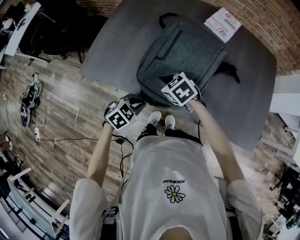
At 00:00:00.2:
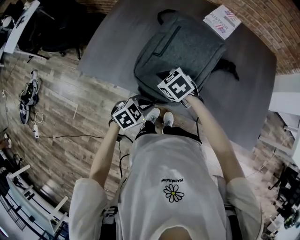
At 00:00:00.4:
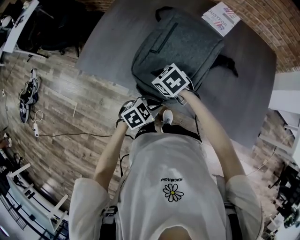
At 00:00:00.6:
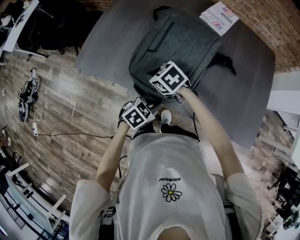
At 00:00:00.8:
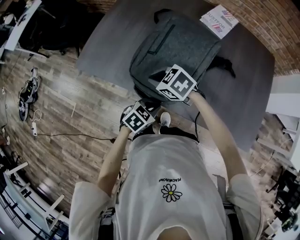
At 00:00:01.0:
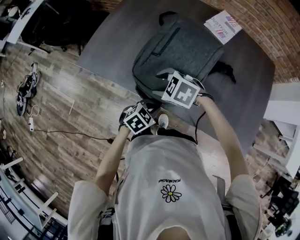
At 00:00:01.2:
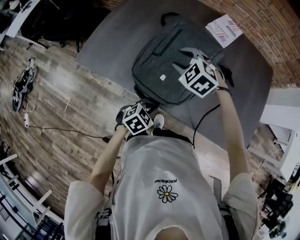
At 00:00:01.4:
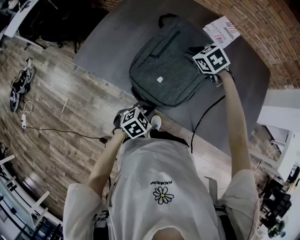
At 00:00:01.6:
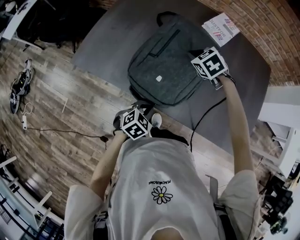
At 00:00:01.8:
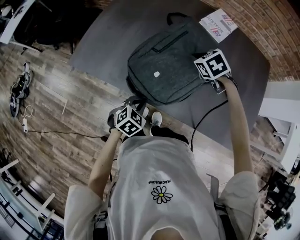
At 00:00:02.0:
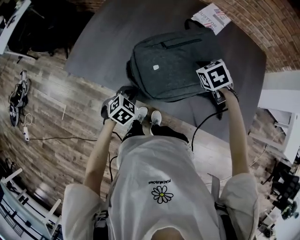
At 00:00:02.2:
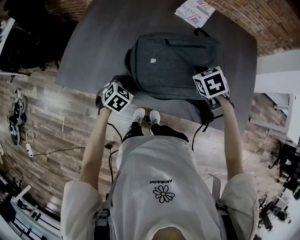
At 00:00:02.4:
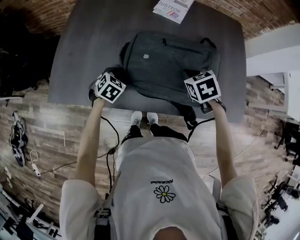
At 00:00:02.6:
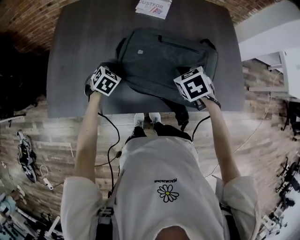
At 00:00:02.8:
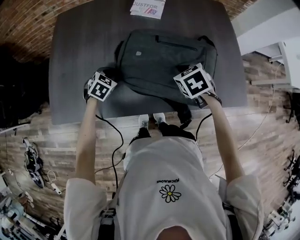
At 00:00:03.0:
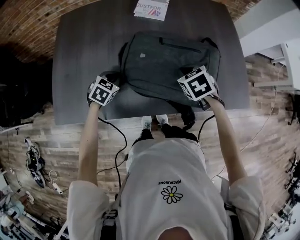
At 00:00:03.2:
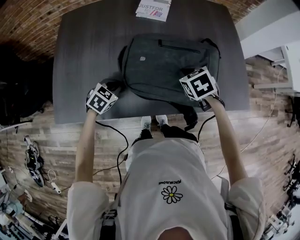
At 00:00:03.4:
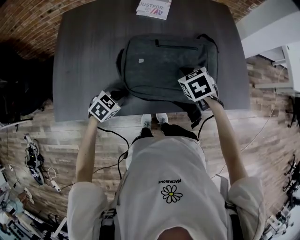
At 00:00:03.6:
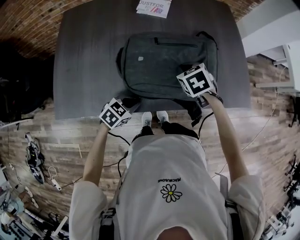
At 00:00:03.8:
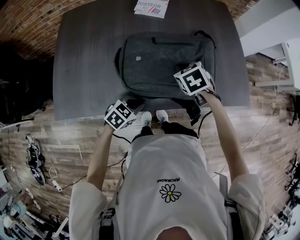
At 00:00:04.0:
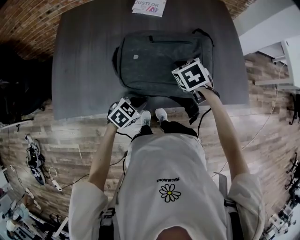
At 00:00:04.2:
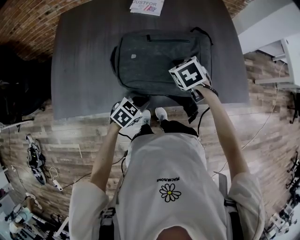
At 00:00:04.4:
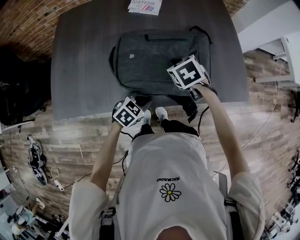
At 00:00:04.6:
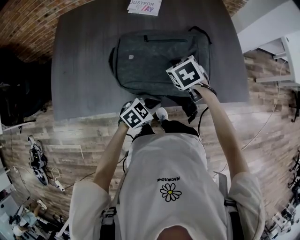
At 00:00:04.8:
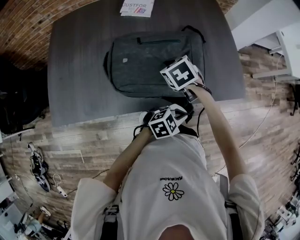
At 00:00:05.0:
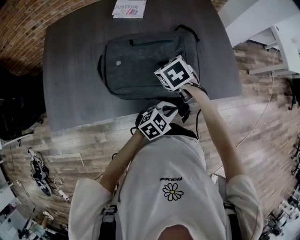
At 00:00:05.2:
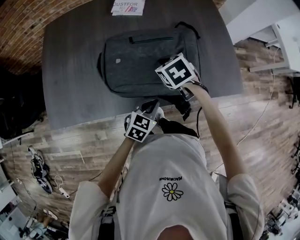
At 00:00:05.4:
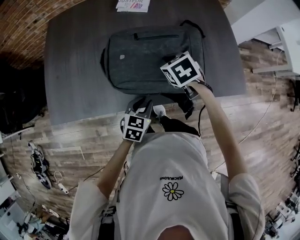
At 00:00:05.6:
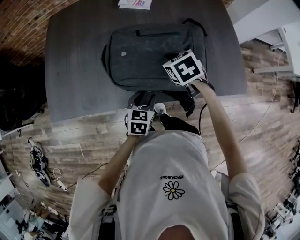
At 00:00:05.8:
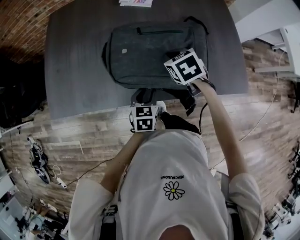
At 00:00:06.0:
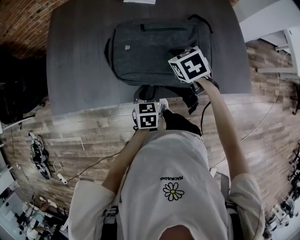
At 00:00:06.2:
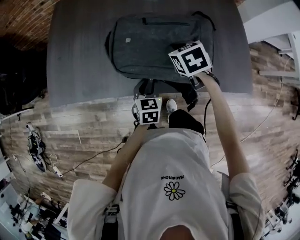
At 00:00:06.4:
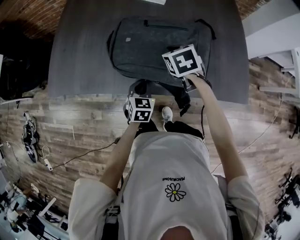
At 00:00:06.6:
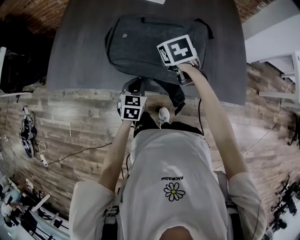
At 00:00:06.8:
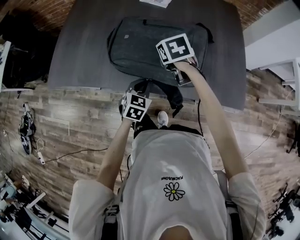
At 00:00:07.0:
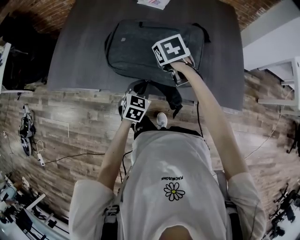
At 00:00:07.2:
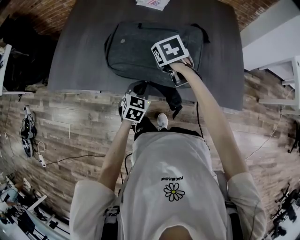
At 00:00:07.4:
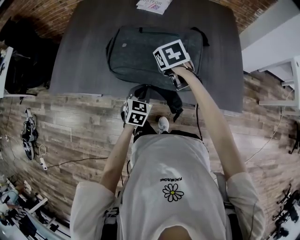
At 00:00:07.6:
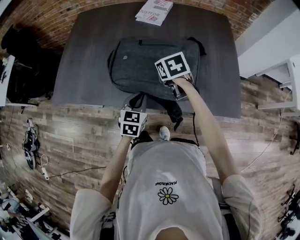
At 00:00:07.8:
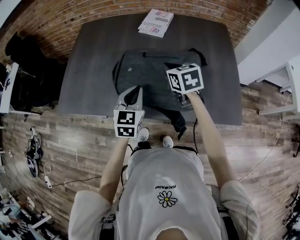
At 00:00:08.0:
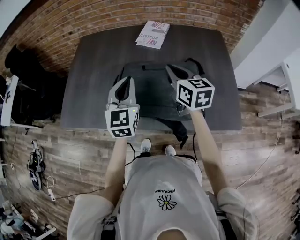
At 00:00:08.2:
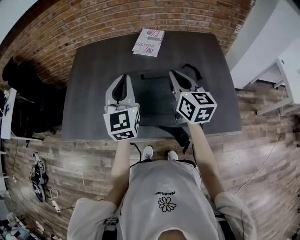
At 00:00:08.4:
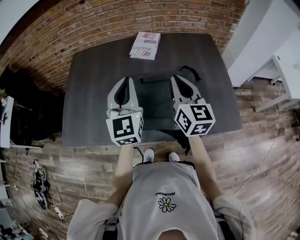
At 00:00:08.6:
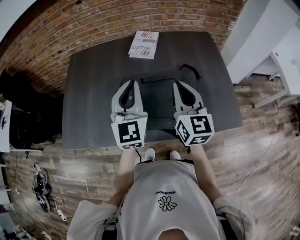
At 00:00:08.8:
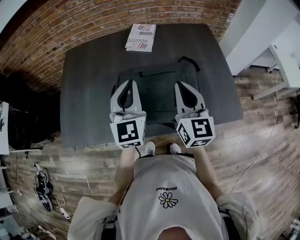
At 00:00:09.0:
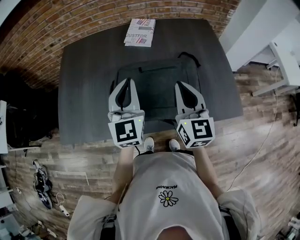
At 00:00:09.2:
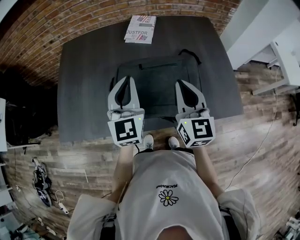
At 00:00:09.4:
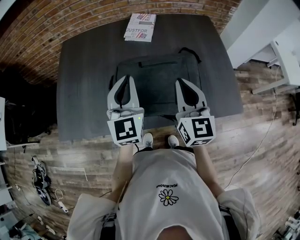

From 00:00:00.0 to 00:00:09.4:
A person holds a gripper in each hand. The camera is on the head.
From 00:00:00.0 to 00:00:01.6: The right gripper ends up some 20 cm from where it was, and opens, then closes once more, while the left gripper shifts by about 10 cm.
From 00:00:01.6 to 00:00:03.2: The left gripper shifts by about 15 cm, and turns by some 20 degrees; the right gripper changes place by some 20 cm, and swivels roughly 40 degrees.
From 00:00:03.2 to 00:00:04.8: The left gripper shifts approximately 35 cm to the right, and swivels about 40 degrees.
From 00:00:04.8 to 00:00:06.2: The left gripper ends up about 20 cm from where it was, turns by approximately 70 degrees, and opens up.
From 00:00:06.2 to 00:00:07.8: The right gripper shifts roughly 5 cm upward, and changes its angle by approximately 20 degrees, while the left gripper is displaced upward by approximately 15 cm, swivels some 20 degrees, and closes its fingers.
From 00:00:07.8 to 00:00:09.4: The left gripper goes approximately 15 cm upward and forward, and rotates approximately 20 degrees; the right gripper heads upward and backward, covering approximately 15 cm, and tilts its fingers some 30 degrees upward.

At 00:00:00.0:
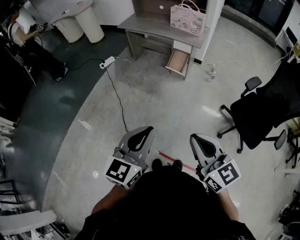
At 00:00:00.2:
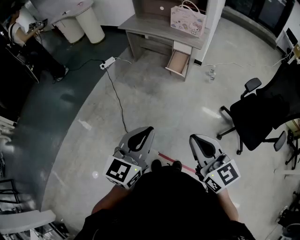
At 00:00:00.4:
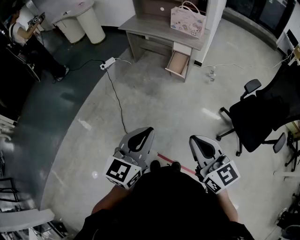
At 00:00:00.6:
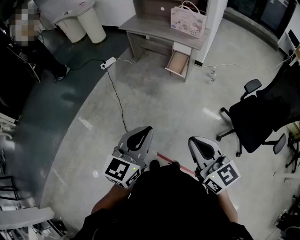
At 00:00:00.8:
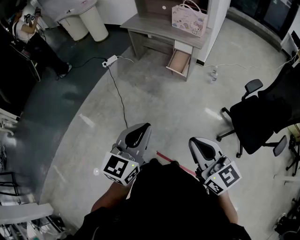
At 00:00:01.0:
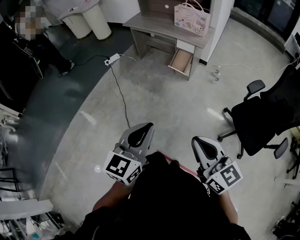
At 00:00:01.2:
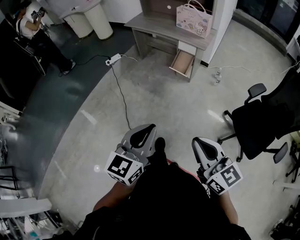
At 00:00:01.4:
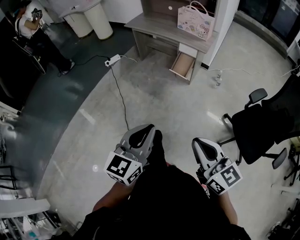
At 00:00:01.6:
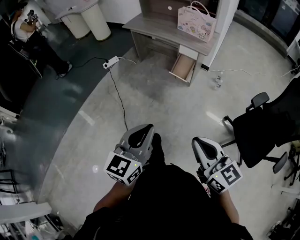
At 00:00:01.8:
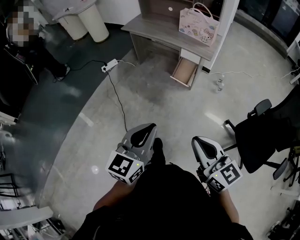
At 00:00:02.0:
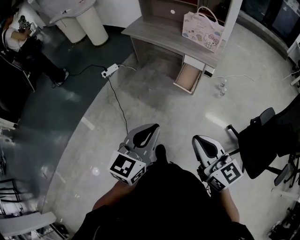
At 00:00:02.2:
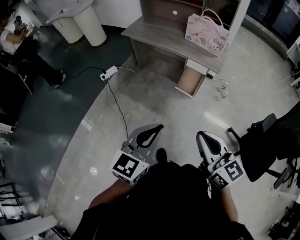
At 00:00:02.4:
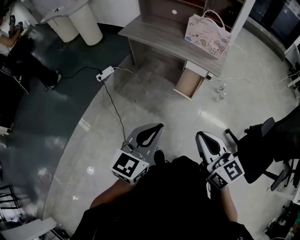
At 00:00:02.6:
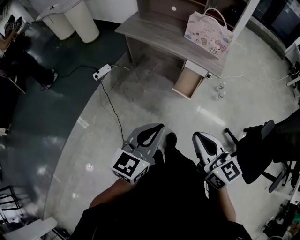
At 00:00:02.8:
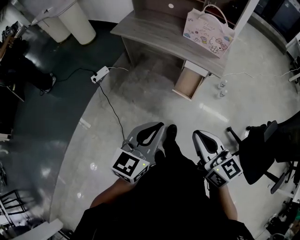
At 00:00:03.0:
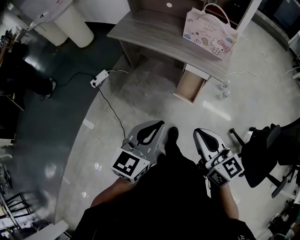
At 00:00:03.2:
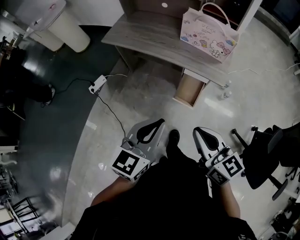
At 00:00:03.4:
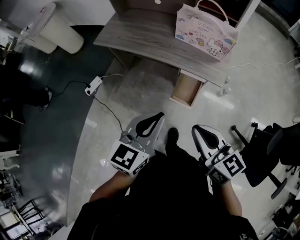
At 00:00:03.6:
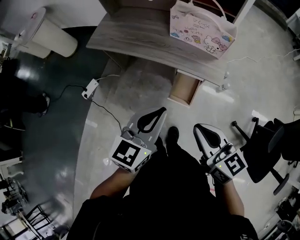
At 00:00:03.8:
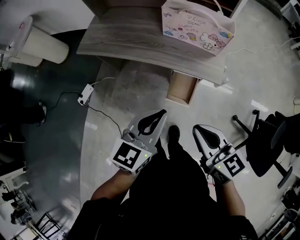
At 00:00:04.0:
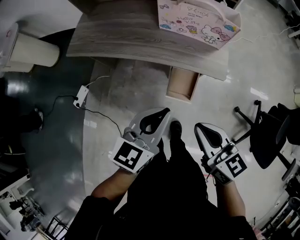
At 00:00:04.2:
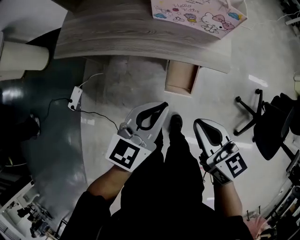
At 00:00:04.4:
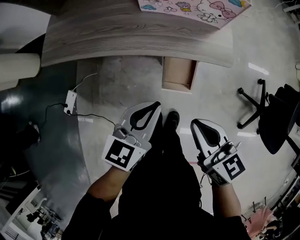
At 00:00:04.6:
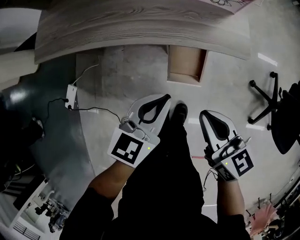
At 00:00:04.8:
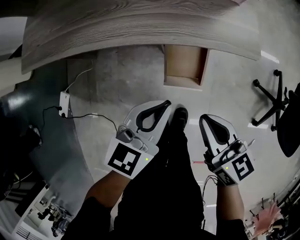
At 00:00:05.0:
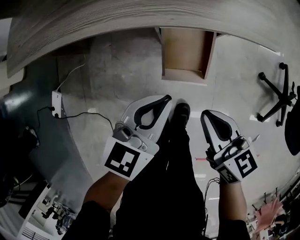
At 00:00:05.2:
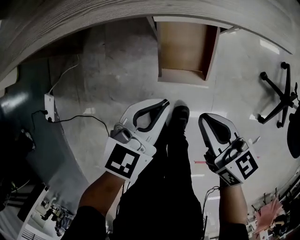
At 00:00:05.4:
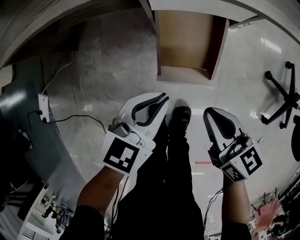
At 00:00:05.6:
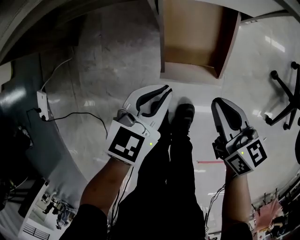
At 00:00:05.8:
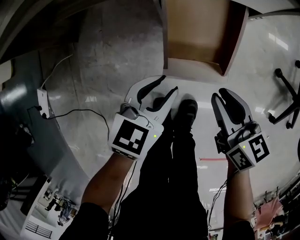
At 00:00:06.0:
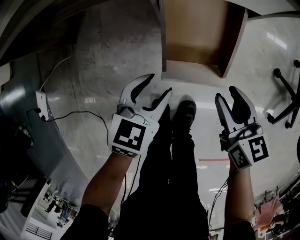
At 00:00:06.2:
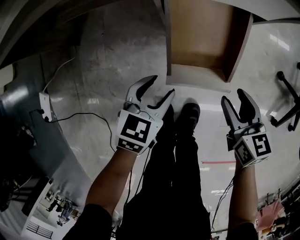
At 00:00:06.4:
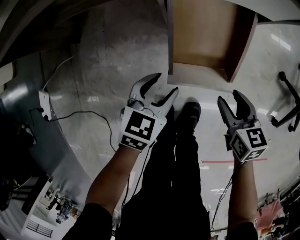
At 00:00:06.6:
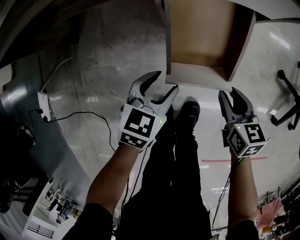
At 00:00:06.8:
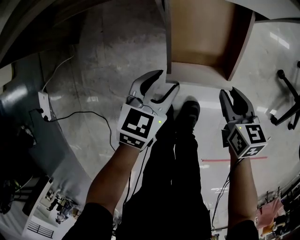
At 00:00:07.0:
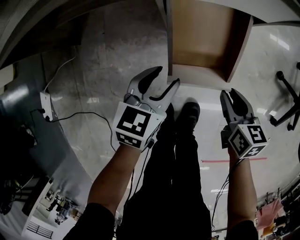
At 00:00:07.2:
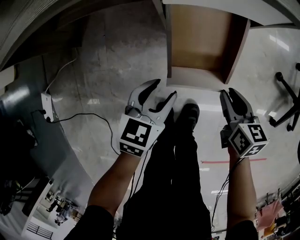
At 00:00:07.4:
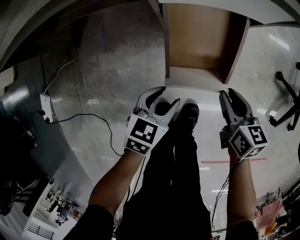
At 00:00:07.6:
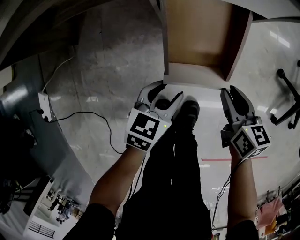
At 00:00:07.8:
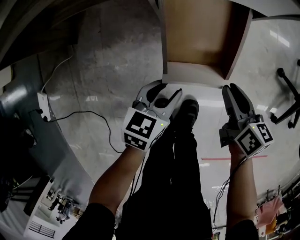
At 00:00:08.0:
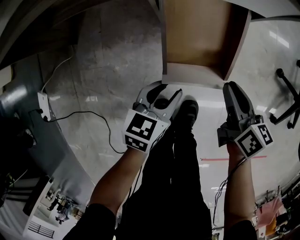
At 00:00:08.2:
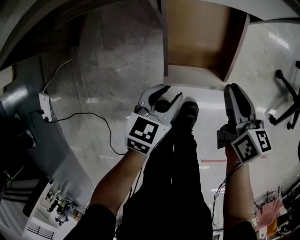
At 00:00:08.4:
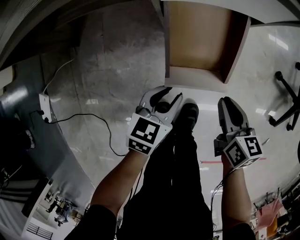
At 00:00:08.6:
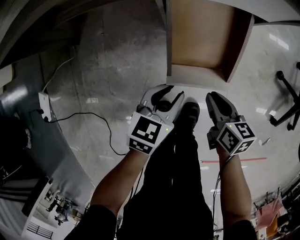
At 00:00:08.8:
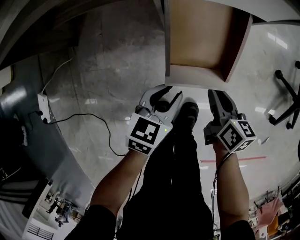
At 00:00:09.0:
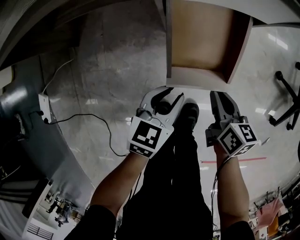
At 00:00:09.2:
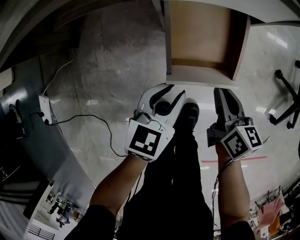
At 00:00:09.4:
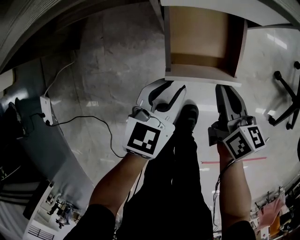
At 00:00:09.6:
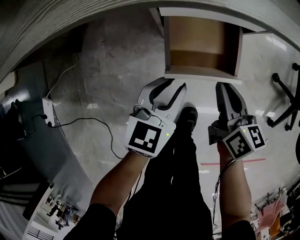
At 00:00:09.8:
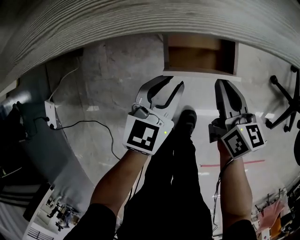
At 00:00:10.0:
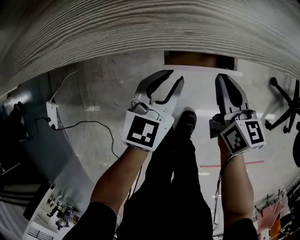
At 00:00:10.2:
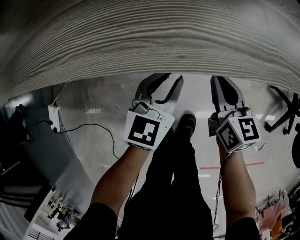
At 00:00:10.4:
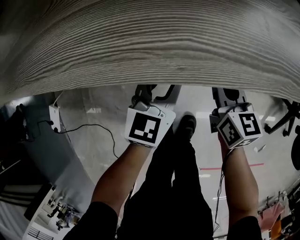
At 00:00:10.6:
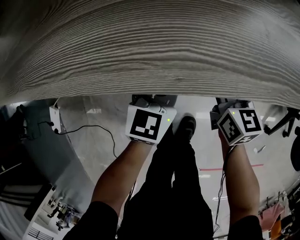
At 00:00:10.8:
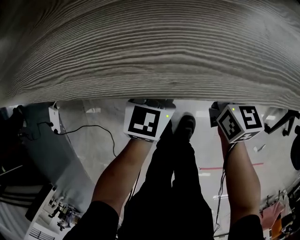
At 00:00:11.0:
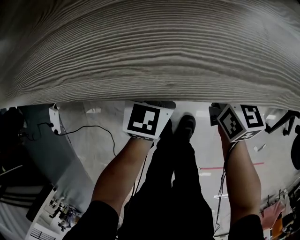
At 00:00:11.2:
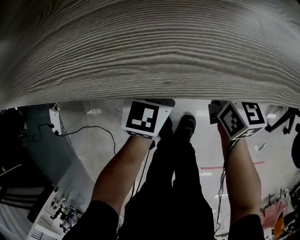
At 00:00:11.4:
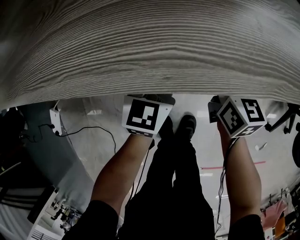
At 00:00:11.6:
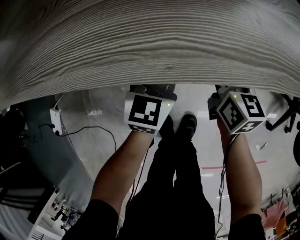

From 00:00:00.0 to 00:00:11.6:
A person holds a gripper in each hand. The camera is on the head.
From 00:00:00.0 to 00:00:01.4: Both grippers travel together to the right, about 5 cm.
From 00:00:01.4 to 00:00:02.8: Both grippers are carried forward, roughly 40 cm.
From 00:00:02.8 to 00:00:04.4: The two grippers go some 40 cm forward and downward. The right gripper changes its angle by some 20 degrees. The left gripper swivels some 30 degrees.
From 00:00:04.4 to 00:00:05.8: The grippers both shift downward by some 40 cm. The right gripper opens up; the left gripper opens up.
From 00:00:05.8 to 00:00:07.2: The right gripper goes roughly 5 cm downward, and opens, then closes again; the left gripper opens.
From 00:00:07.2 to 00:00:08.8: The left gripper closes up.
From 00:00:08.8 to 00:00:10.2: The grippers both shift forward and upward by approximately 15 cm. The right gripper changes its angle by about 20 degrees.
From 00:00:10.2 to 00:00:11.6: The grippers both shift forward by about 5 cm.

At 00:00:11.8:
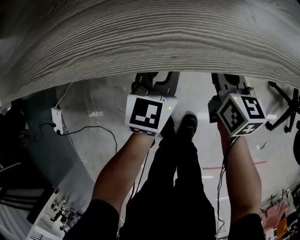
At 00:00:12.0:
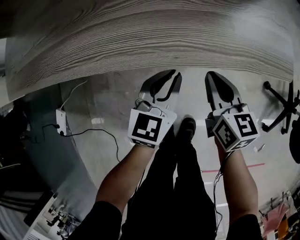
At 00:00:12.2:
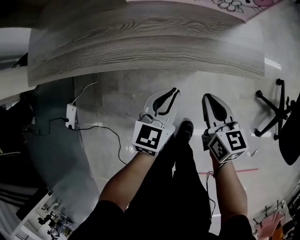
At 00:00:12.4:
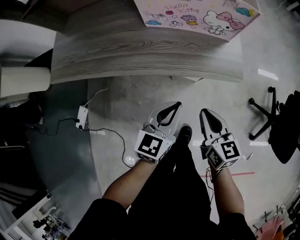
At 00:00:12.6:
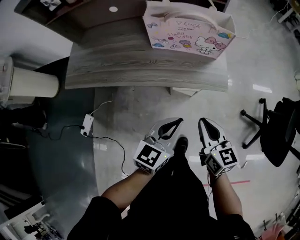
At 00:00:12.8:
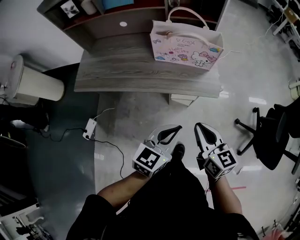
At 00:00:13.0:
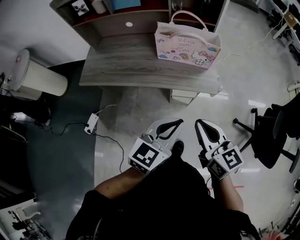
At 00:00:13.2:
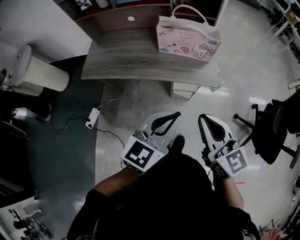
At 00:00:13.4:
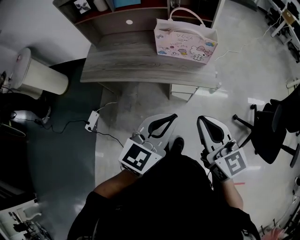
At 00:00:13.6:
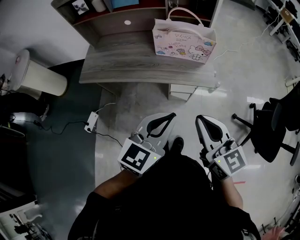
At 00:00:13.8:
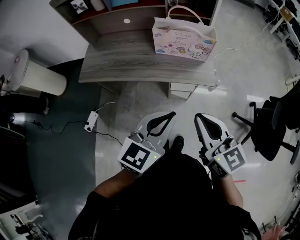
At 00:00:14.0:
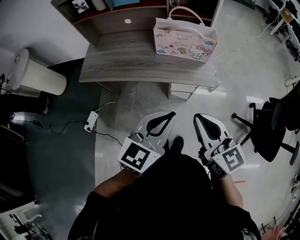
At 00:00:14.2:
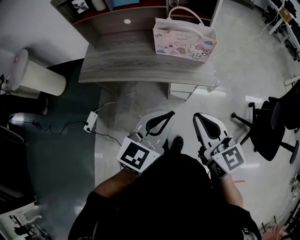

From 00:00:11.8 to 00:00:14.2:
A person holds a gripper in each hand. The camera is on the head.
From 00:00:11.8 to 00:00:13.0: Both grippers move upward and backward, approximately 60 cm. The right gripper swivels approximately 30 degrees.
From 00:00:13.0 to 00:00:14.2: The left gripper shifts by some 5 cm. The right gripper goes roughly 5 cm upward.
